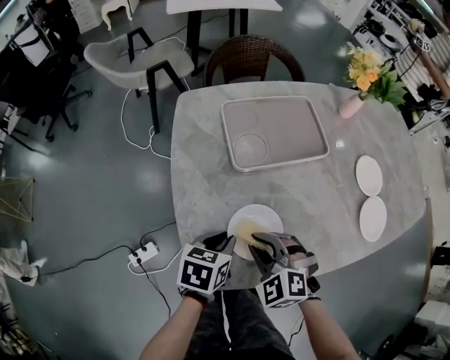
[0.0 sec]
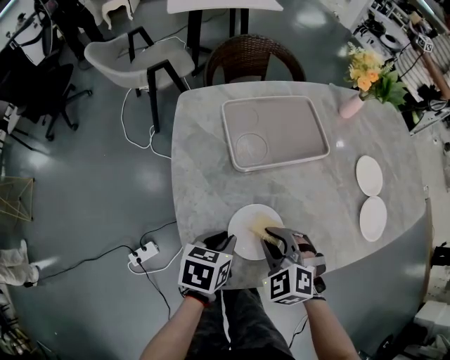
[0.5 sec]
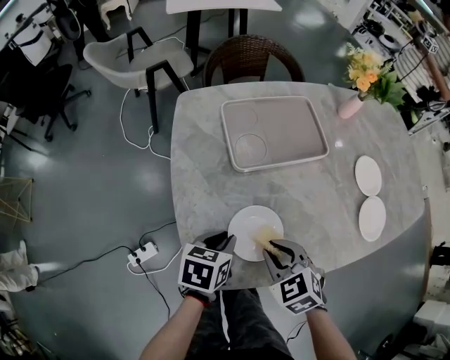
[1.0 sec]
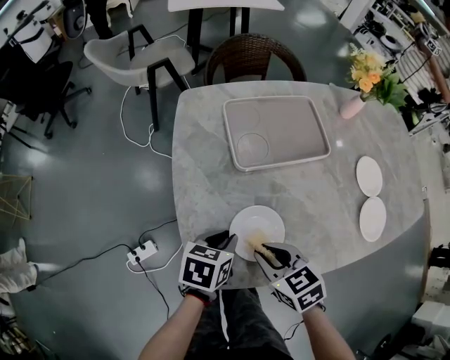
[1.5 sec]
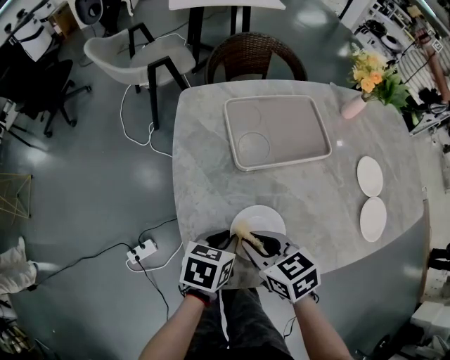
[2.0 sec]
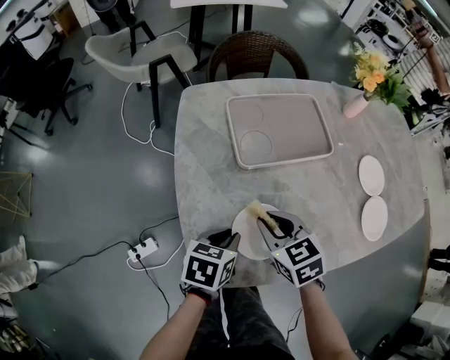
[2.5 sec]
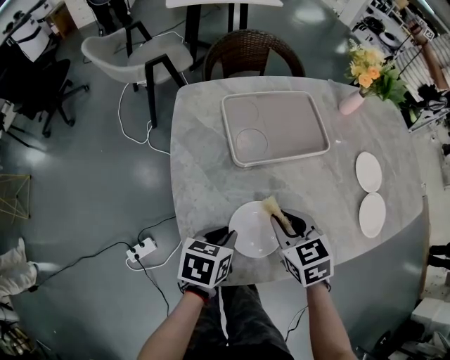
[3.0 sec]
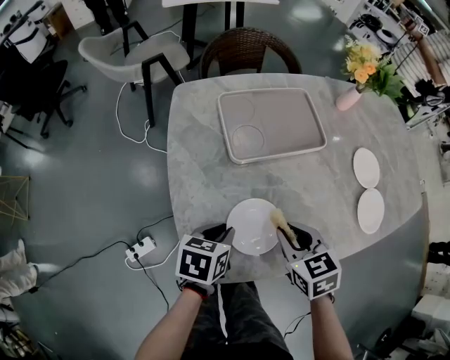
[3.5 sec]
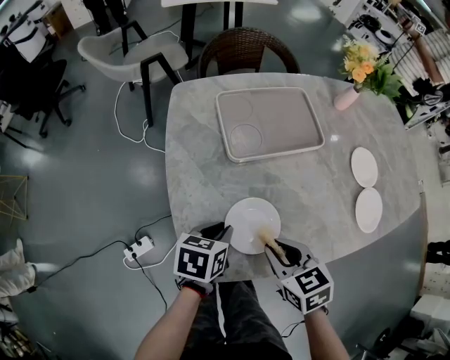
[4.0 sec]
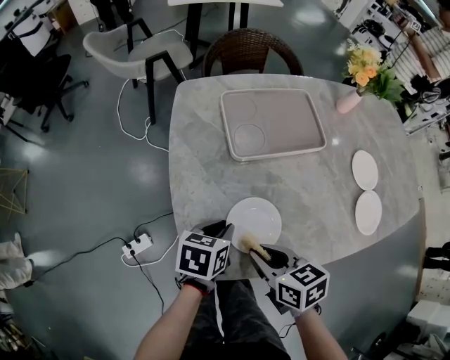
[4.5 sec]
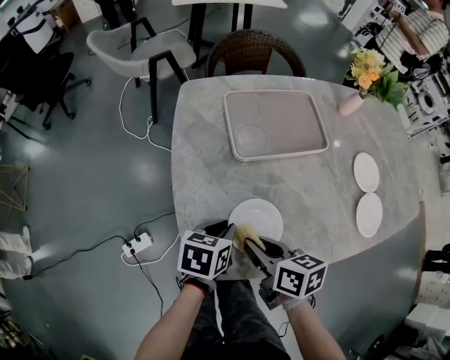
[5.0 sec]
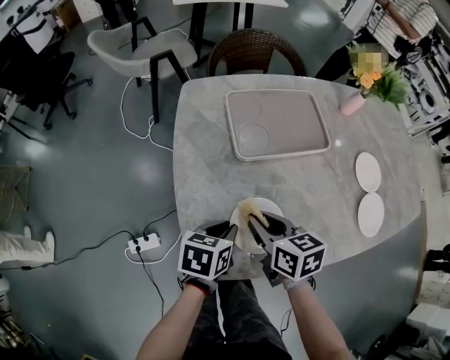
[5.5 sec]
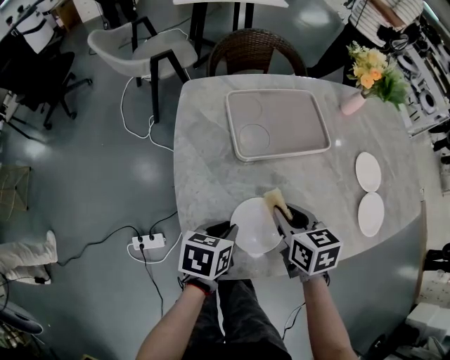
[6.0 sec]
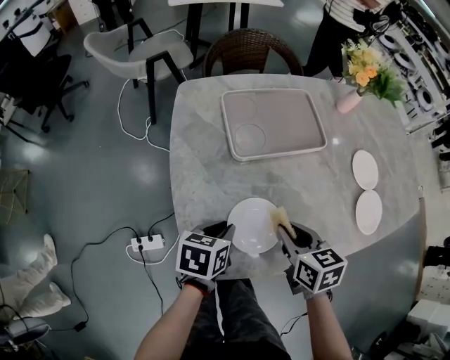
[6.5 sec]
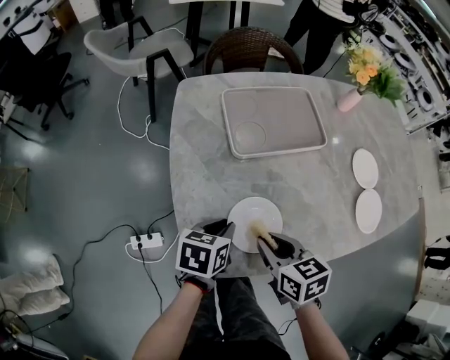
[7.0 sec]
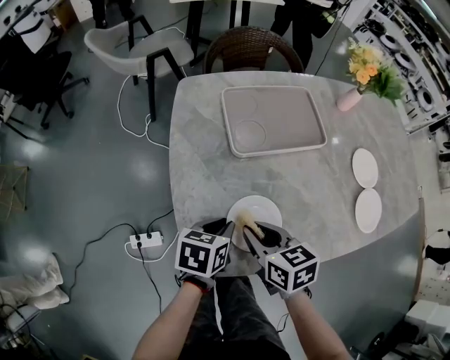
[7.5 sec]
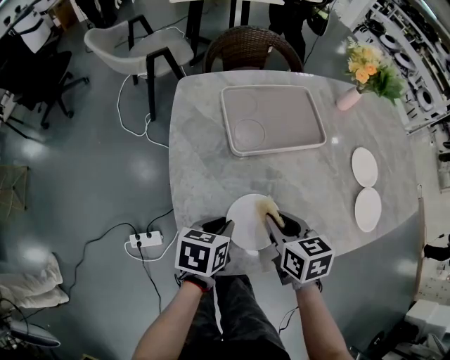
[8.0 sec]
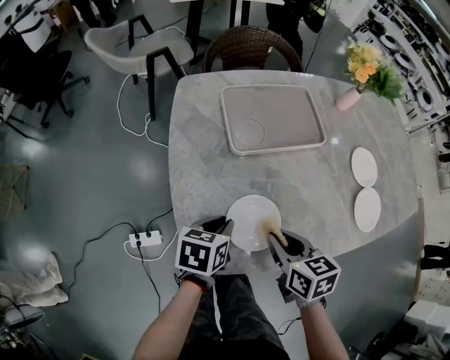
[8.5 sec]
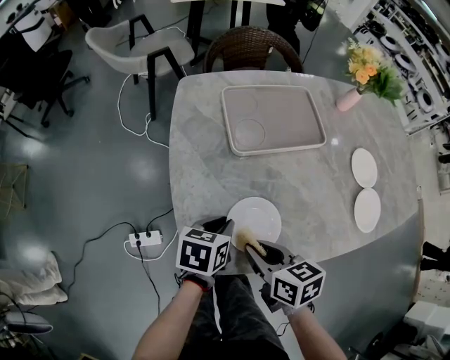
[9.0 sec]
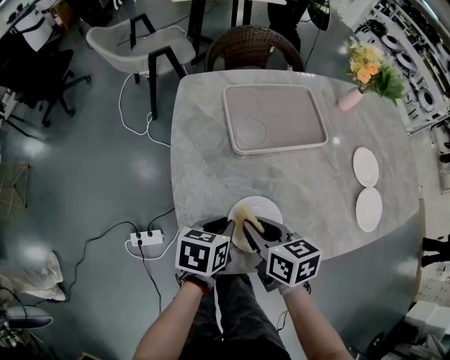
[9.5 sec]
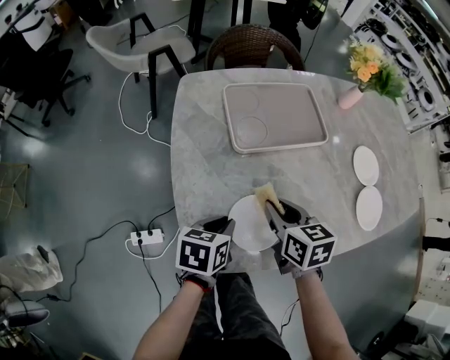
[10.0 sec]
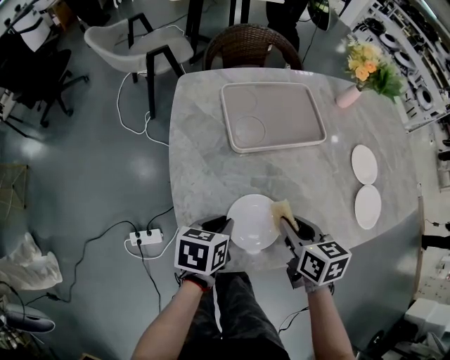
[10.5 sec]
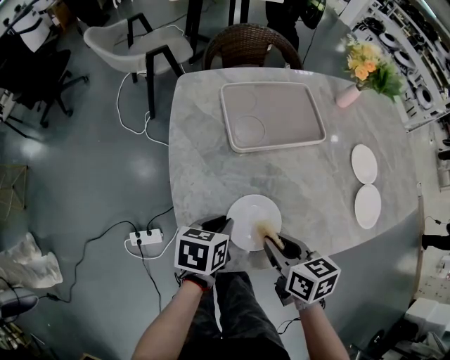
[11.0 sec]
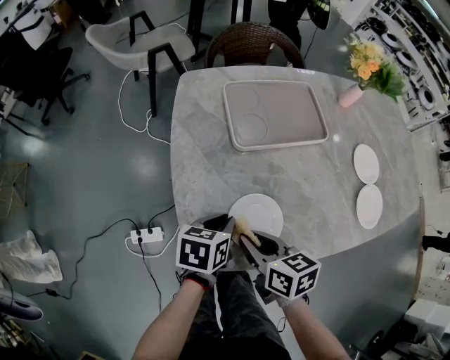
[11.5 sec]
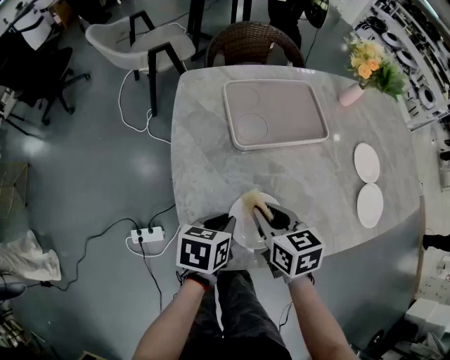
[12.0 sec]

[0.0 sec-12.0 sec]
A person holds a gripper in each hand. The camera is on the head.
0.0 sec to 2.0 sec: The right gripper rotates around the line of its fingers by about 50 degrees, clockwise from behind.
2.0 sec to 4.0 sec: The right gripper moves to the right, roughly 10 cm.
4.0 sec to 6.0 sec: The right gripper goes approximately 10 cm forward.
8.0 sec to 10.0 sec: The right gripper reaches about 10 cm backward, then returns.
10.0 sec to 12.0 sec: The right gripper travels to the left and back again, approximately 5 cm each way.

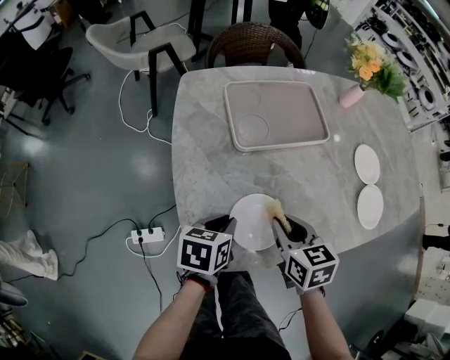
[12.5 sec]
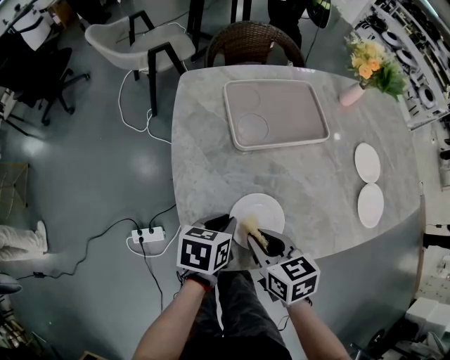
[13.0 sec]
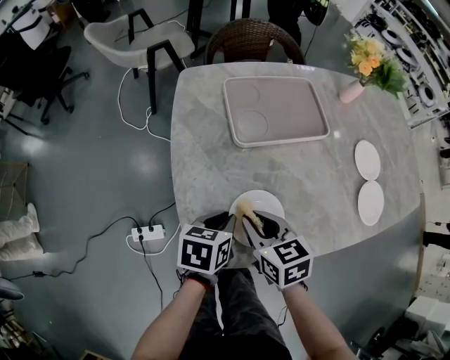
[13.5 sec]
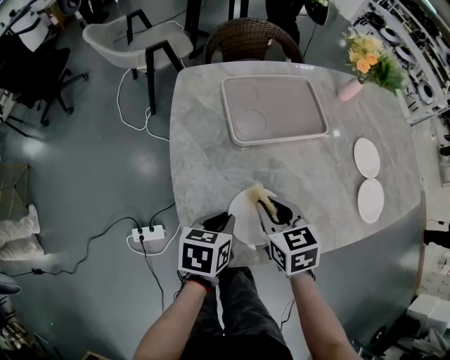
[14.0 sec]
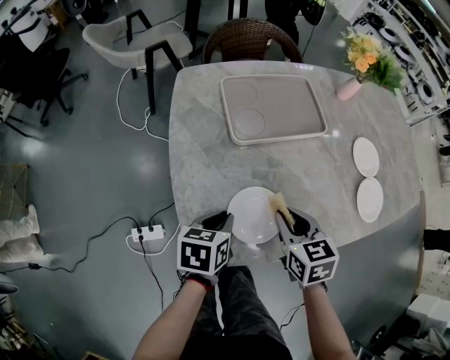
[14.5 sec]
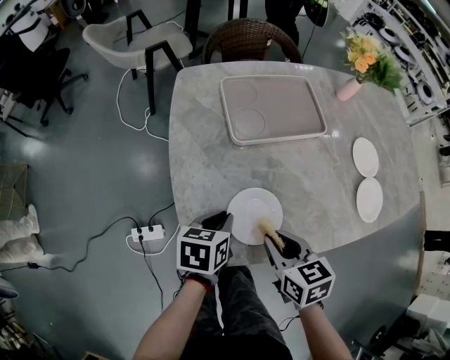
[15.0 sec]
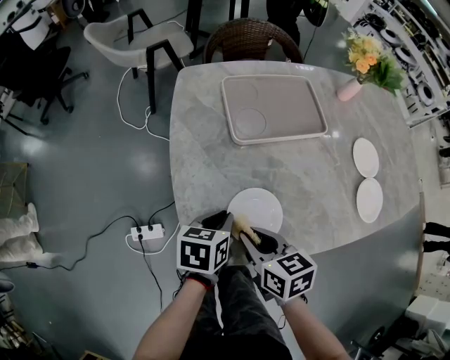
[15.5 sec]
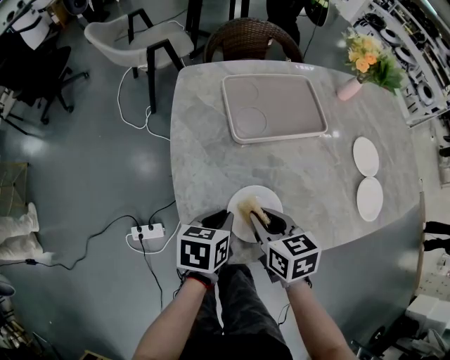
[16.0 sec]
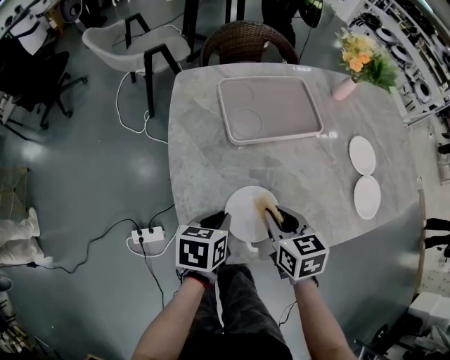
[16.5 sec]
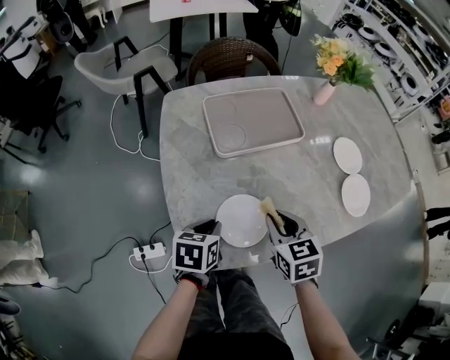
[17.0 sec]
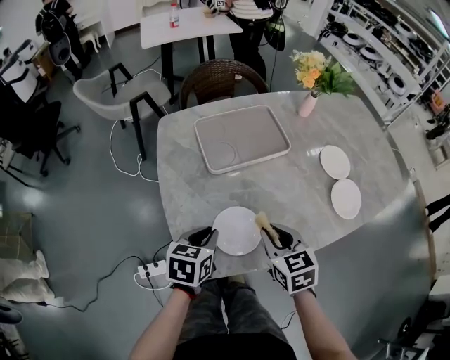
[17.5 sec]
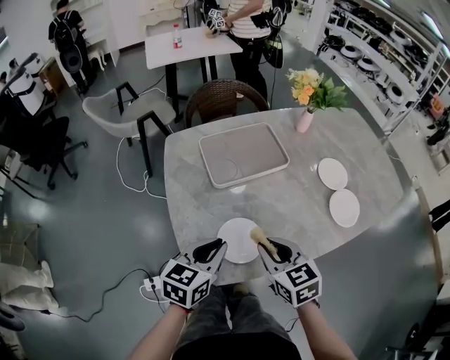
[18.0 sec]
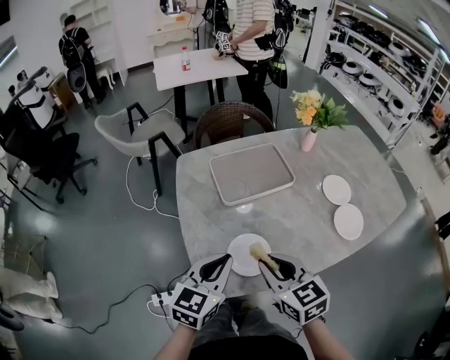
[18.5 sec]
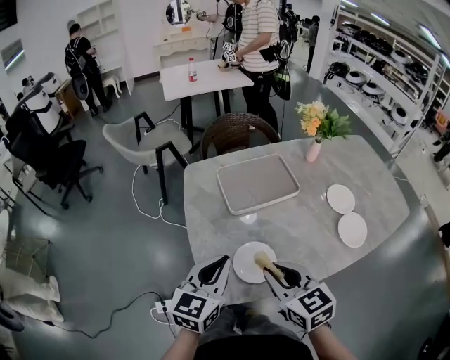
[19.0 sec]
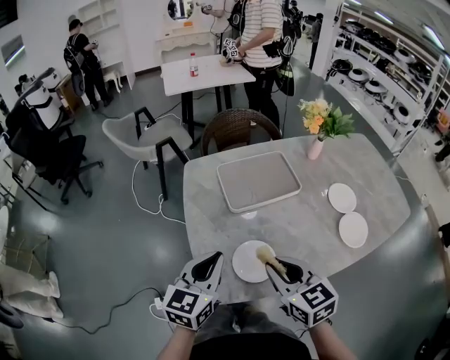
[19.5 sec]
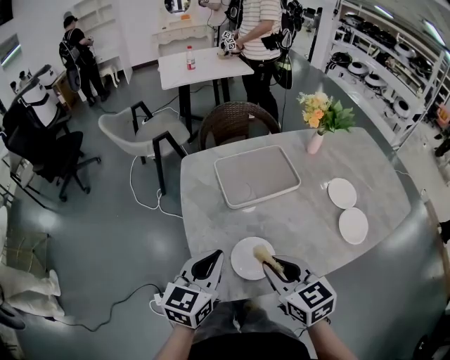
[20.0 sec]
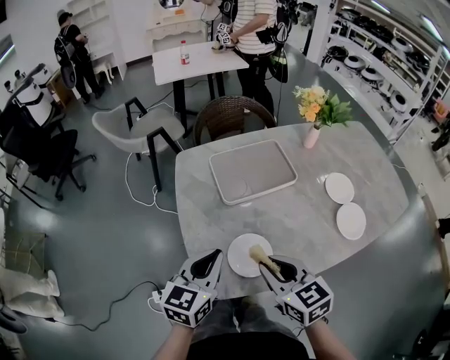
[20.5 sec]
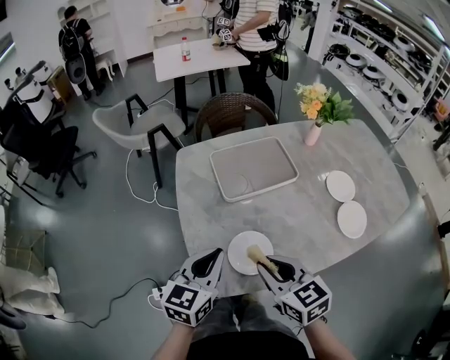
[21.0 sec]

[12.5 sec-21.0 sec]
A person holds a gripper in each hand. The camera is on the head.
12.5 sec to 14.5 sec: The right gripper reaches some 10 cm to the left, then returns.
14.5 sec to 16.5 sec: The right gripper moves some 10 cm to the left and comes back.
16.5 sec to 19.0 sec: The right gripper goes some 15 cm upward and backward. The left gripper is displaced upward by about 20 cm, and points its fingers some 30 degrees further upward.
19.0 sec to 21.0 sec: The grippers move only a little.

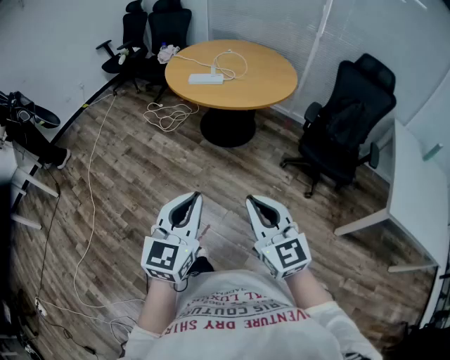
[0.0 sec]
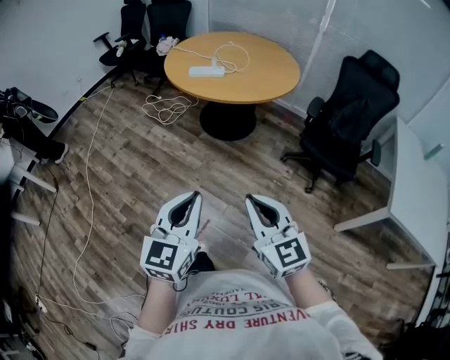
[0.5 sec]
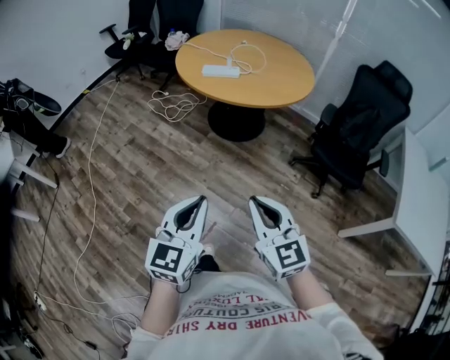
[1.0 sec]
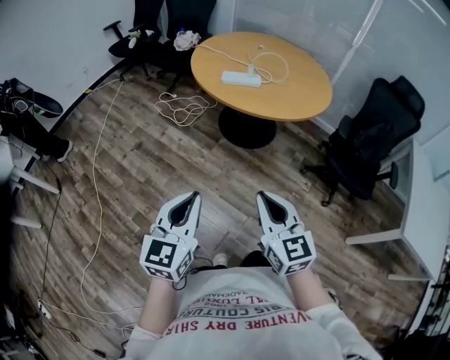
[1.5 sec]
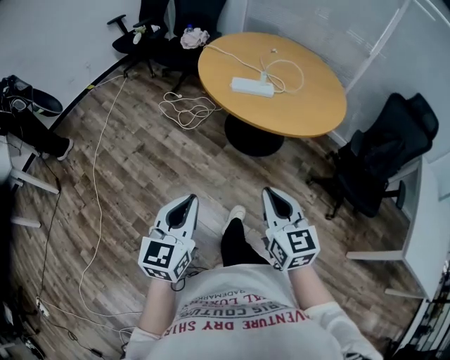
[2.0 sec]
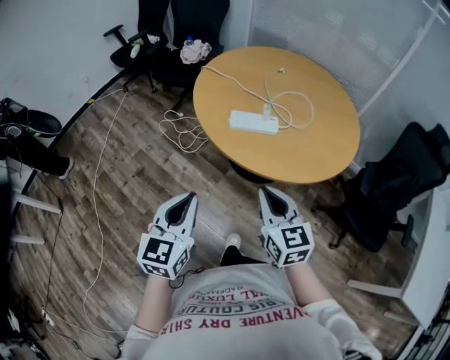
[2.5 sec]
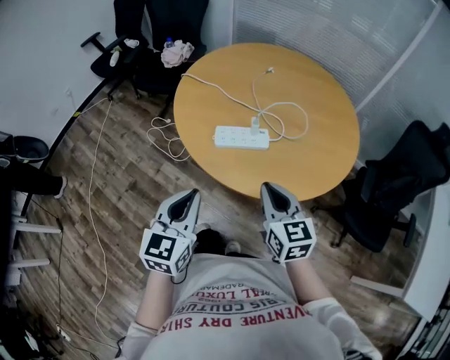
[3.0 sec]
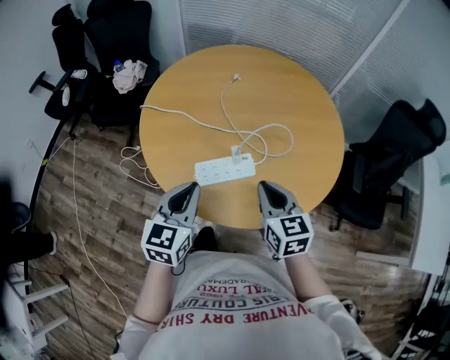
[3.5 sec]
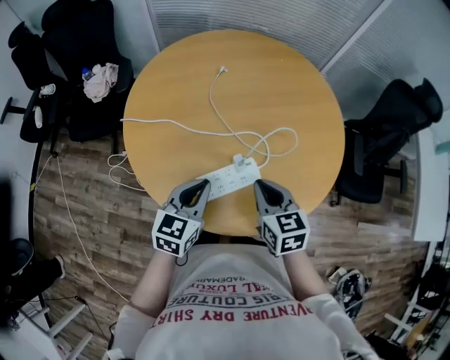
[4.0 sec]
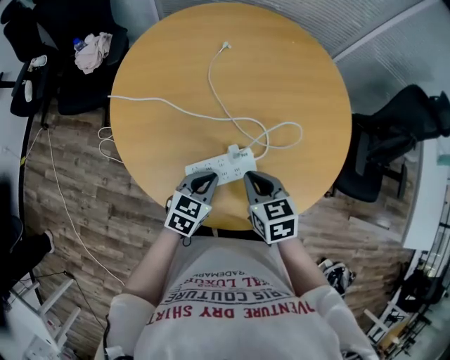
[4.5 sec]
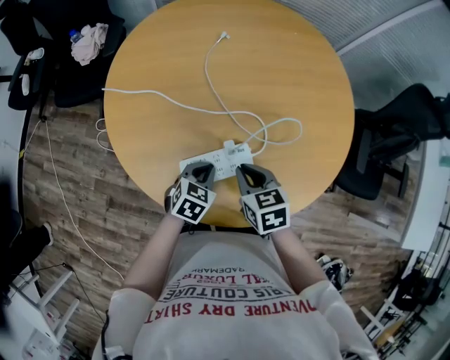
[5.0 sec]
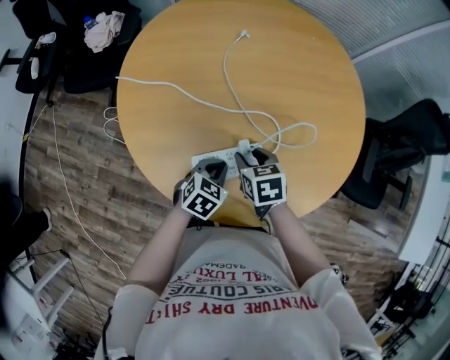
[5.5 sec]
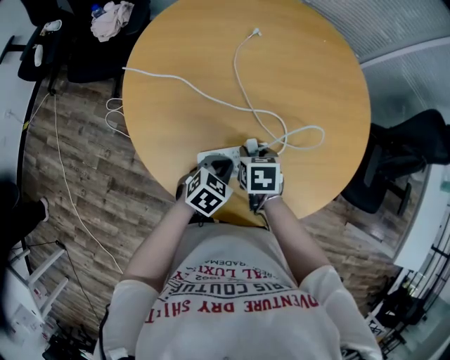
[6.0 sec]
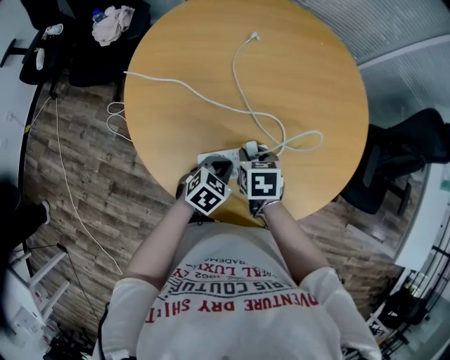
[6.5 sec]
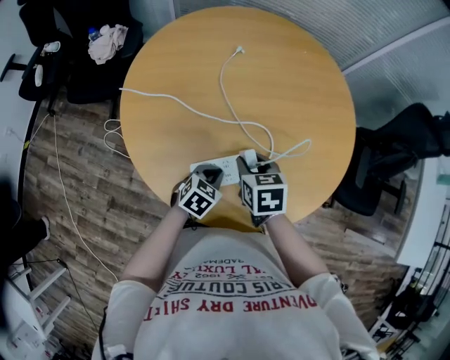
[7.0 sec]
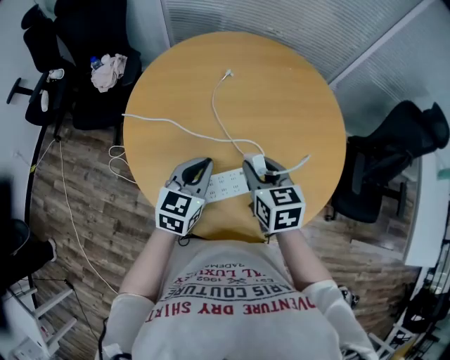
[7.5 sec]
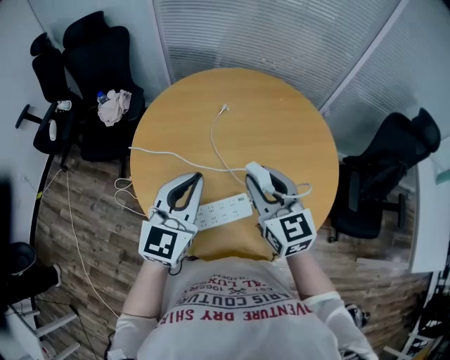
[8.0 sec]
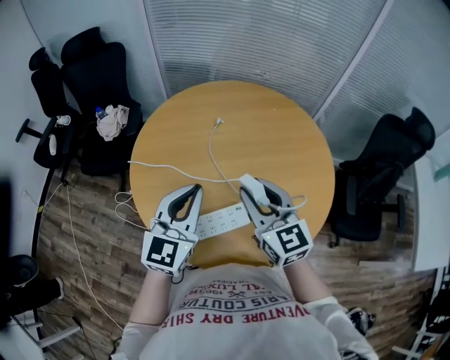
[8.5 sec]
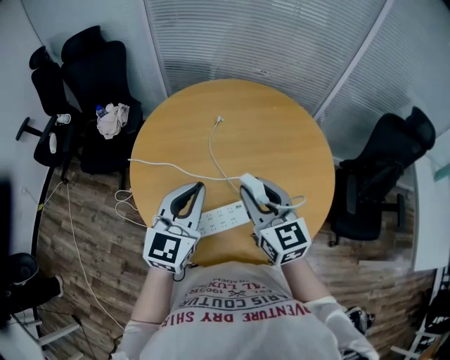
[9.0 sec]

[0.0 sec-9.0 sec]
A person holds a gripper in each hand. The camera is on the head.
0.0 sec to 2.0 sec: Both grippers move forward and to the left, about 30 cm.
2.0 sec to 4.5 sec: The two grippers travel together, roughly 60 cm. The right gripper tips its fingers downward by approximately 30 degrees, while the left gripper changes its angle by about 50 degrees.
4.5 sec to 7.0 sec: The left gripper is displaced downward by approximately 5 cm, while the right gripper goes downward and returns, about 10 cm each way, and opens.
7.0 sec to 9.0 sec: The right gripper shifts some 20 cm upward, and tilts its fingers some 40 degrees upward. The left gripper shifts some 35 cm upward, and angles its fingers upward, by some 40 degrees.
